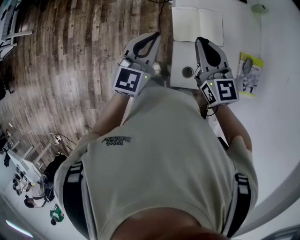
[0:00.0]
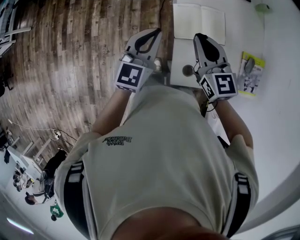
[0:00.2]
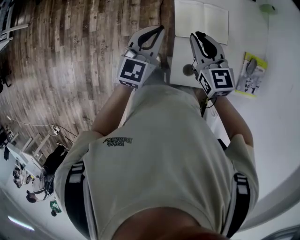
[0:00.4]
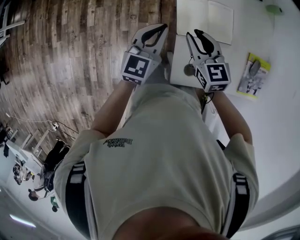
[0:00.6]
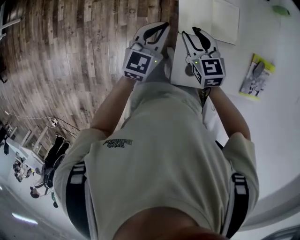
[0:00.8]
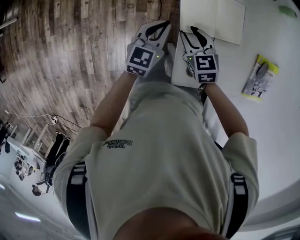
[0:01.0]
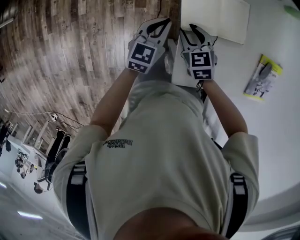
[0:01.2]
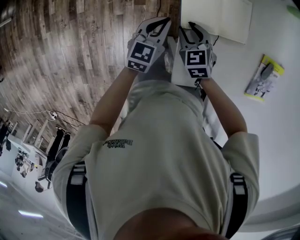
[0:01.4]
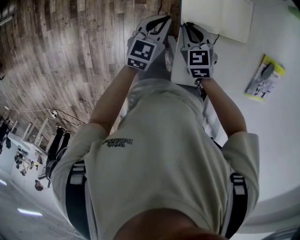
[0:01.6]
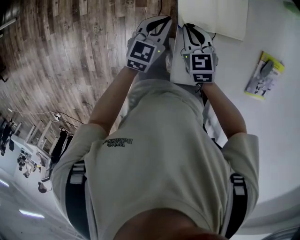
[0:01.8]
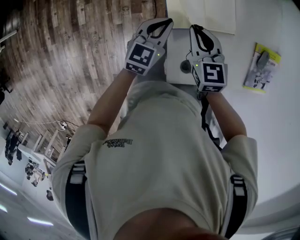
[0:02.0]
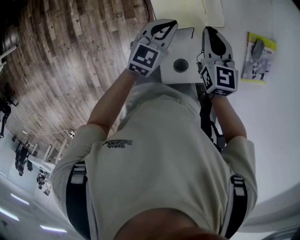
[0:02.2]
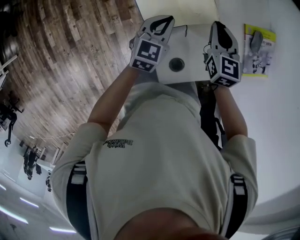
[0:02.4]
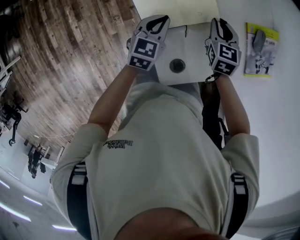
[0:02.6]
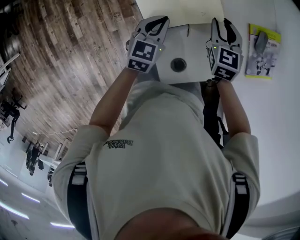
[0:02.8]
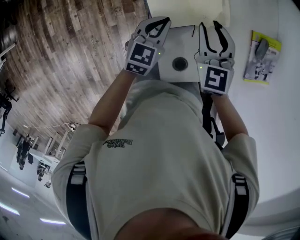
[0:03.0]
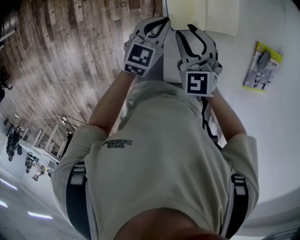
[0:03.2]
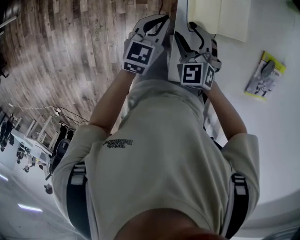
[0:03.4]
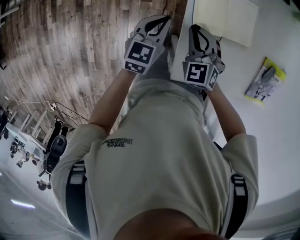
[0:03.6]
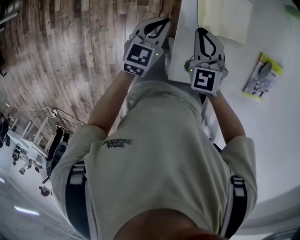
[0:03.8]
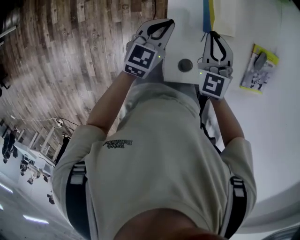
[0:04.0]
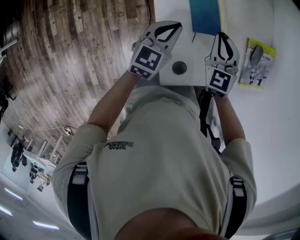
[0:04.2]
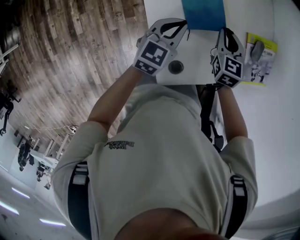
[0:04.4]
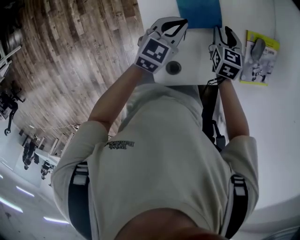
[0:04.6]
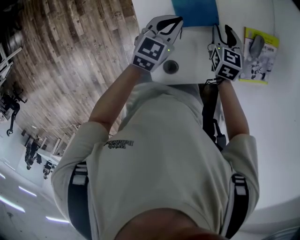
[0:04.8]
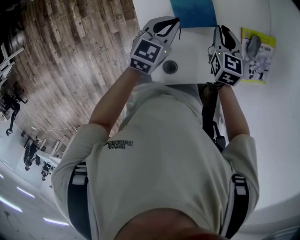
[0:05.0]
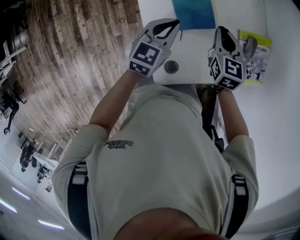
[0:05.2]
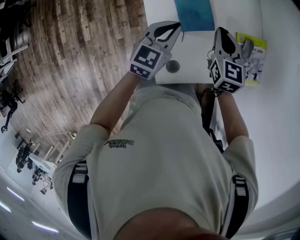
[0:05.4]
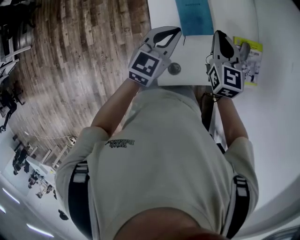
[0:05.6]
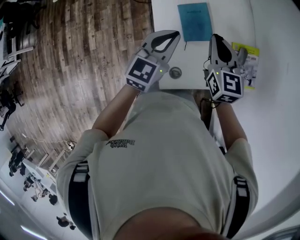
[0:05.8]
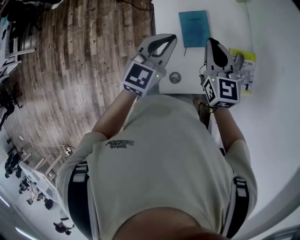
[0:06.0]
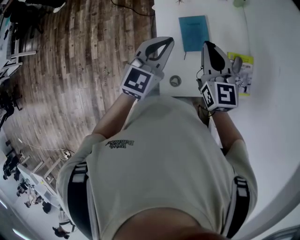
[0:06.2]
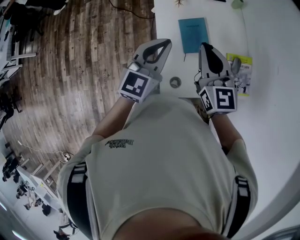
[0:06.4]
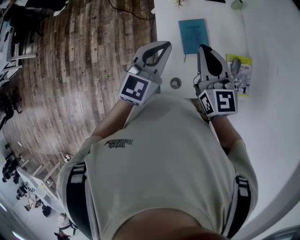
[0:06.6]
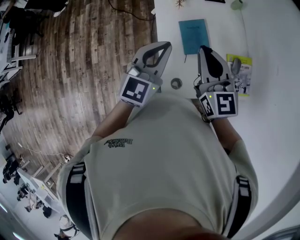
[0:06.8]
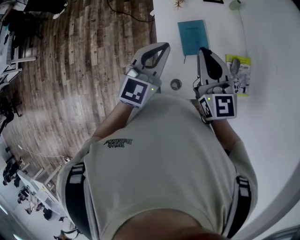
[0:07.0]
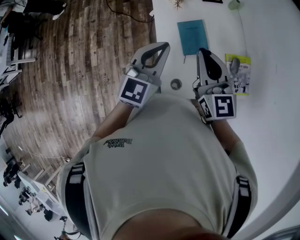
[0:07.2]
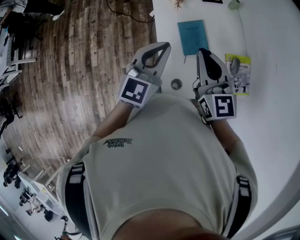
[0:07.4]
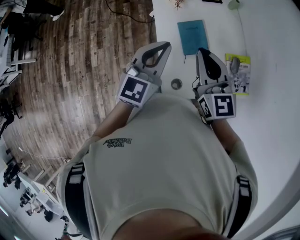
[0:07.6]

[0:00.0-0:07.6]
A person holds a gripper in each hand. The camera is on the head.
0:00.0 to 0:01.6: Both grippers travel together downward, roughly 30 cm. The left gripper changes its angle by roughly 20 degrees; the right gripper tilts its fingers some 30 degrees downward, and opens and closes again.
0:01.6 to 0:03.0: The right gripper swings up and down, approximately 15 cm each way, with 2 reversals, rotates some 30 degrees, and opens. The left gripper shifts by about 10 cm.
0:03.0 to 0:04.6: The right gripper swings up and down, about 10 cm each way, with 2 reversals, rotates approximately 30 degrees, and closes and opens again. The left gripper changes place by roughly 10 cm.
0:04.6 to 0:06.0: The grippers both shift upward by approximately 25 cm. The left gripper changes its angle by some 20 degrees. Meanwhile the right gripper changes its angle by about 30 degrees, and closes up.
0:06.0 to 0:07.6: Both grippers move upward, some 5 cm.

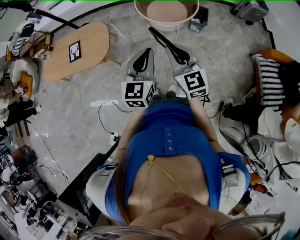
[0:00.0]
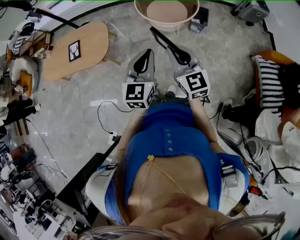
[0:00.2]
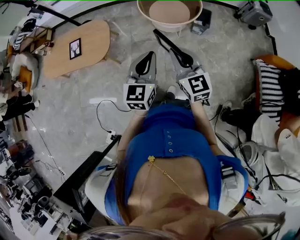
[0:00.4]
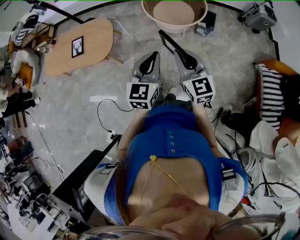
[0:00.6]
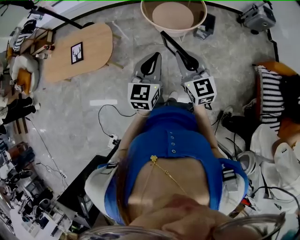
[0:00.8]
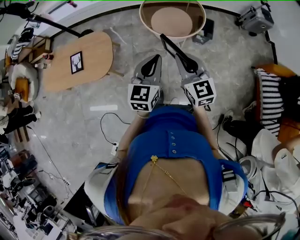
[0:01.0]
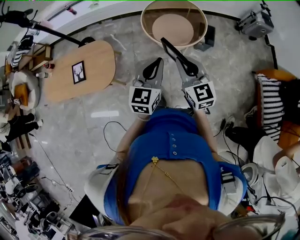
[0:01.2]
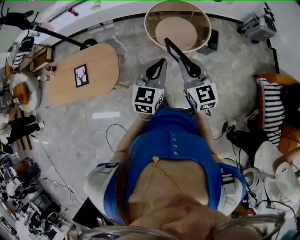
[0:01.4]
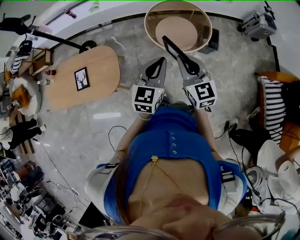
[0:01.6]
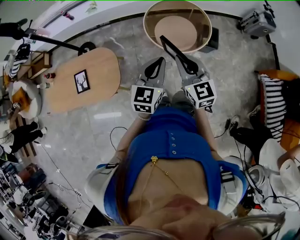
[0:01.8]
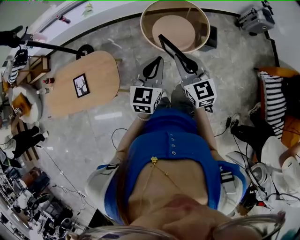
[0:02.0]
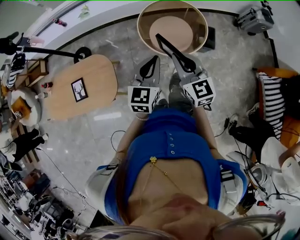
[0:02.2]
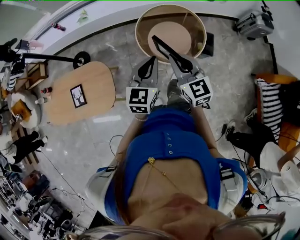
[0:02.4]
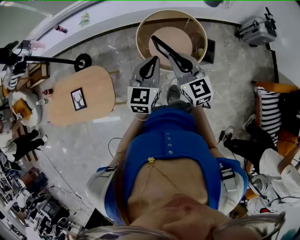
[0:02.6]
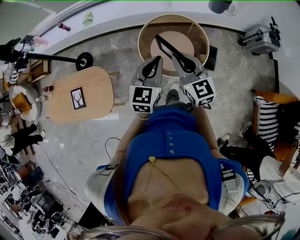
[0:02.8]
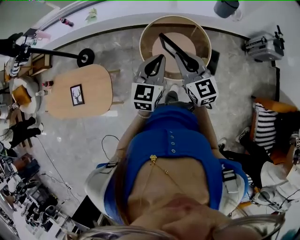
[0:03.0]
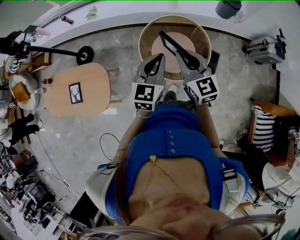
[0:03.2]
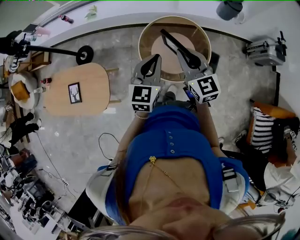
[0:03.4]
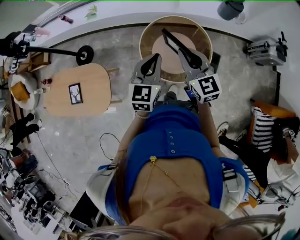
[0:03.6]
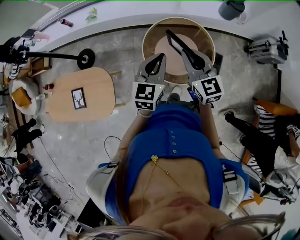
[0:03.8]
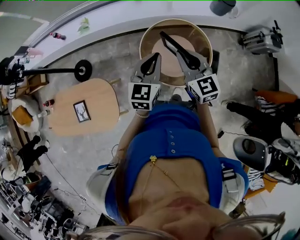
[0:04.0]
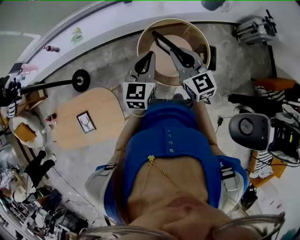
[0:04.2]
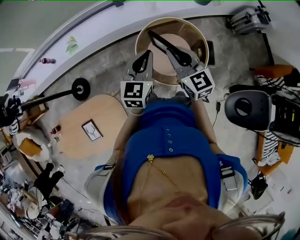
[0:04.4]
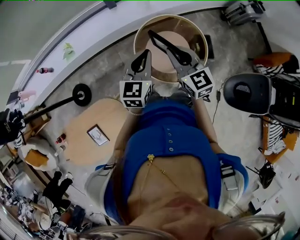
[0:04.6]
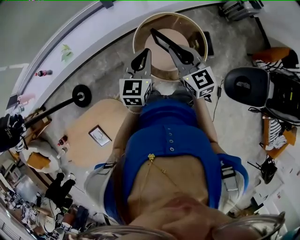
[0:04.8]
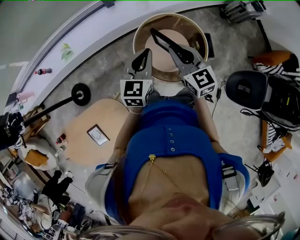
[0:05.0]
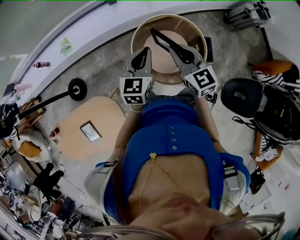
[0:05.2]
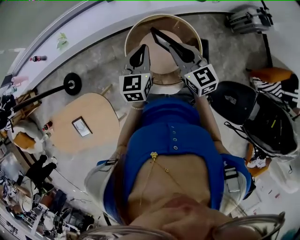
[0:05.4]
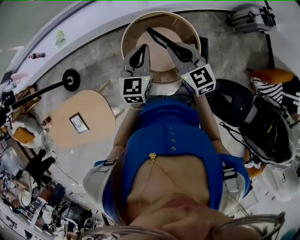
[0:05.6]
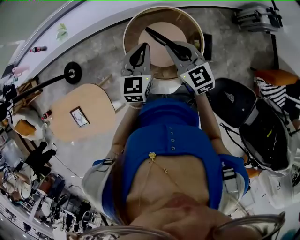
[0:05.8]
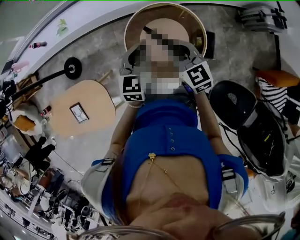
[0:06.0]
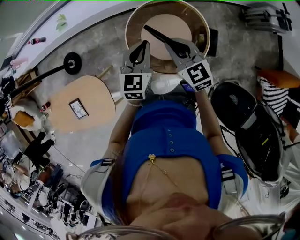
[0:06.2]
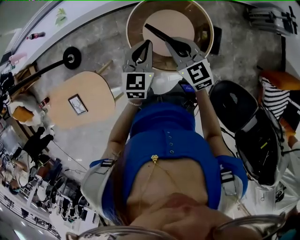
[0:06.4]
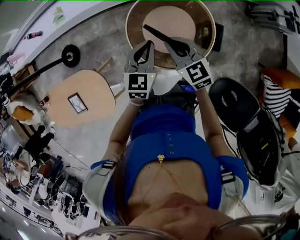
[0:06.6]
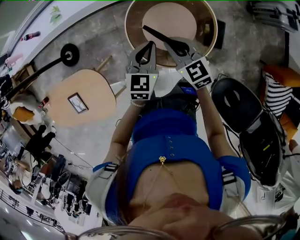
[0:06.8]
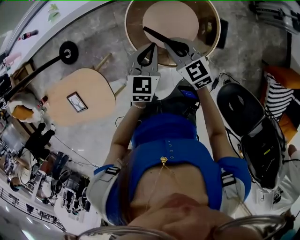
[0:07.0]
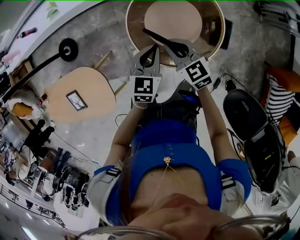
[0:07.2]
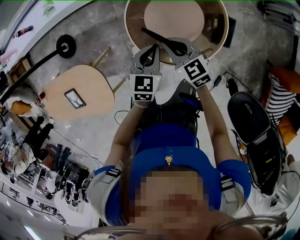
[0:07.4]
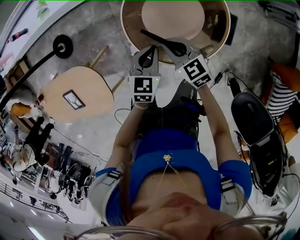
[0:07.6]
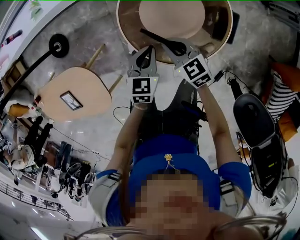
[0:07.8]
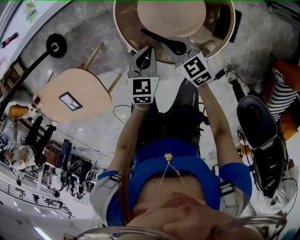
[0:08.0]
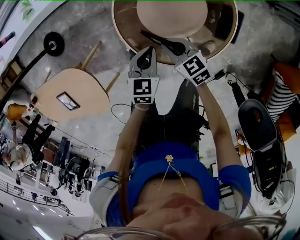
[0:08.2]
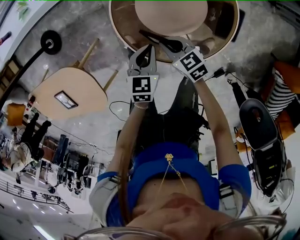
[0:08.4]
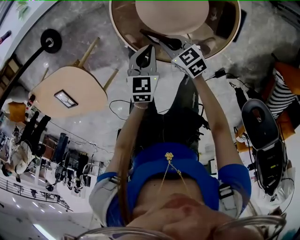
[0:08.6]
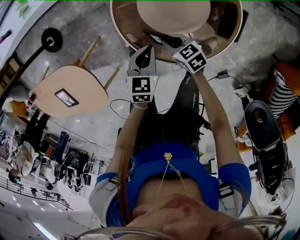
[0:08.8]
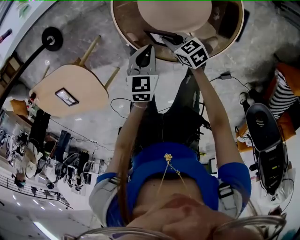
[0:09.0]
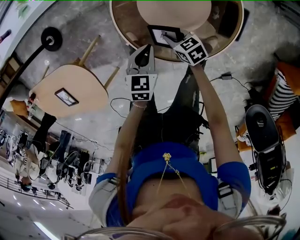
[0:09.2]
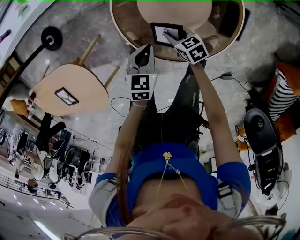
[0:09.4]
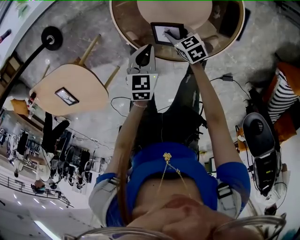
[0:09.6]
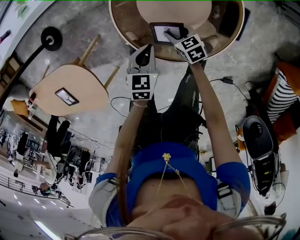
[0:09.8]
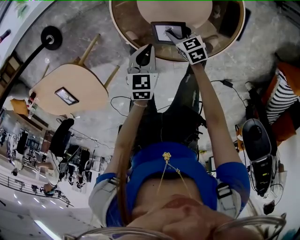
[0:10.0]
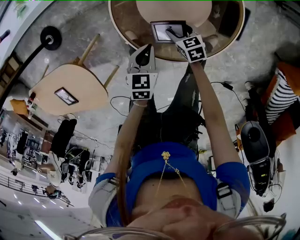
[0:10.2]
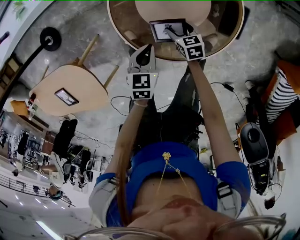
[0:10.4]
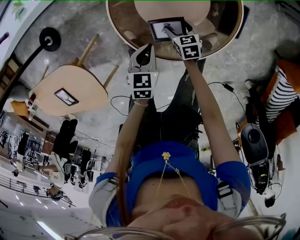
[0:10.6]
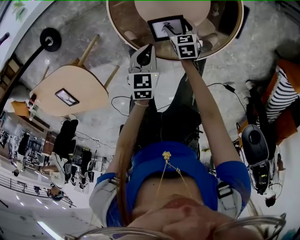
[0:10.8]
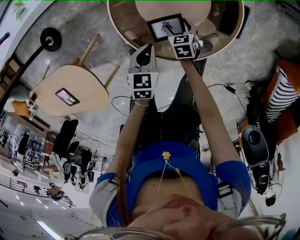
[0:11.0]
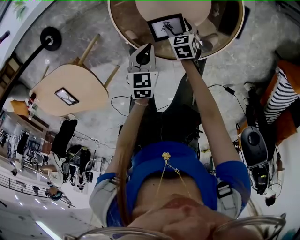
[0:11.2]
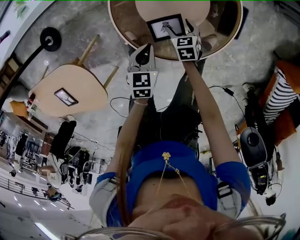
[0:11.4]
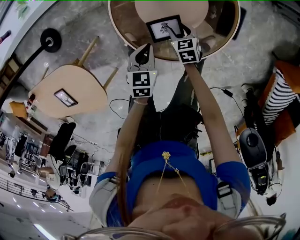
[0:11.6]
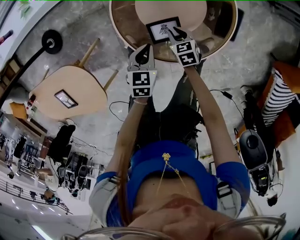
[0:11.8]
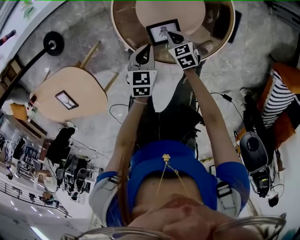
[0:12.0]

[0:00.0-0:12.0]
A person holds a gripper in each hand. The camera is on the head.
0:00.0 to 0:01.6: Both grippers travel together forward, some 25 cm.
0:01.6 to 0:03.0: The right gripper travels forward by about 25 cm. Meanwhile the left gripper moves forward and to the right, about 30 cm.
0:03.0 to 0:04.4: Both grippers move forward and to the left, about 20 cm.
0:04.4 to 0:06.0: Both grippers move to the right and downward, roughly 15 cm.
0:06.0 to 0:07.6: Both grippers move downward, some 25 cm. The right gripper rotates some 20 degrees. Meanwhile the left gripper turns by roughly 20 degrees.
0:07.6 to 0:09.0: The right gripper is displaced downward by some 20 cm, and swivels about 30 degrees; the left gripper is displaced downward by some 10 cm.
0:09.0 to 0:10.4: The right gripper goes some 10 cm to the right and downward, turns by approximately 20 degrees, and opens up.
0:10.4 to 0:12.0: The right gripper heads upward, covering about 5 cm, and closes up.

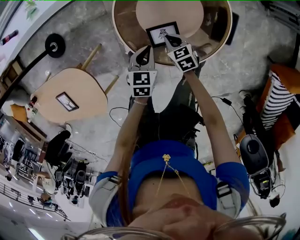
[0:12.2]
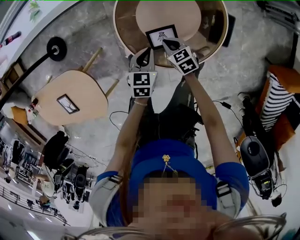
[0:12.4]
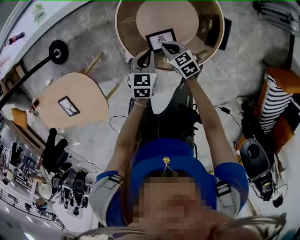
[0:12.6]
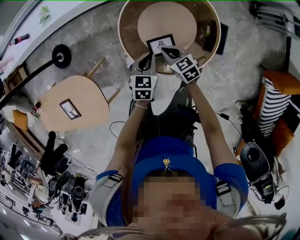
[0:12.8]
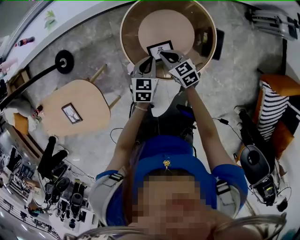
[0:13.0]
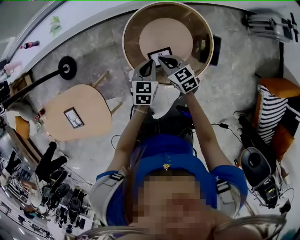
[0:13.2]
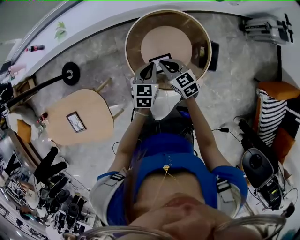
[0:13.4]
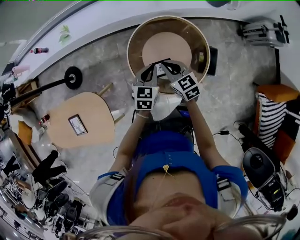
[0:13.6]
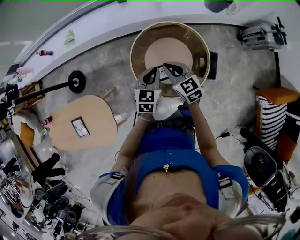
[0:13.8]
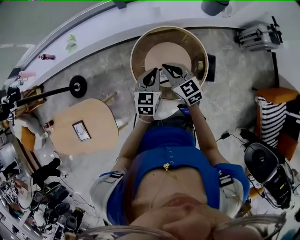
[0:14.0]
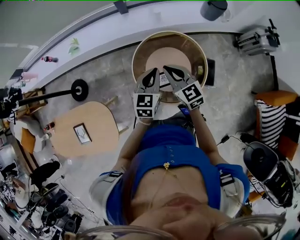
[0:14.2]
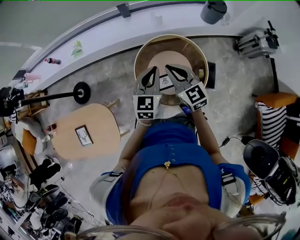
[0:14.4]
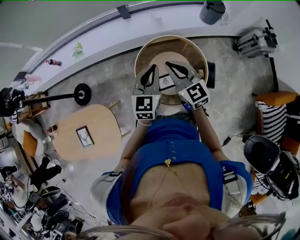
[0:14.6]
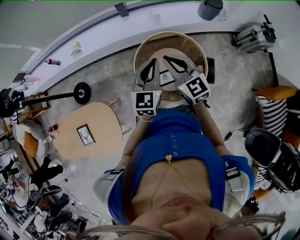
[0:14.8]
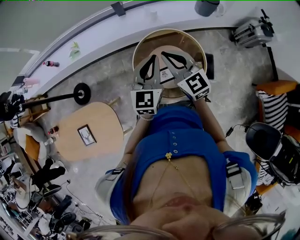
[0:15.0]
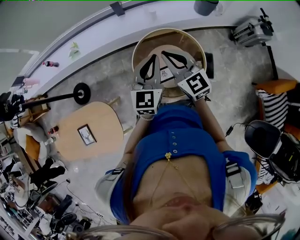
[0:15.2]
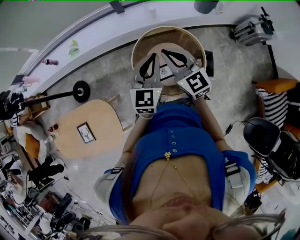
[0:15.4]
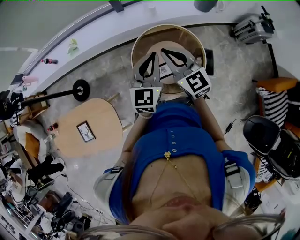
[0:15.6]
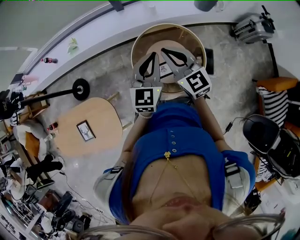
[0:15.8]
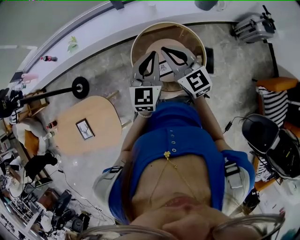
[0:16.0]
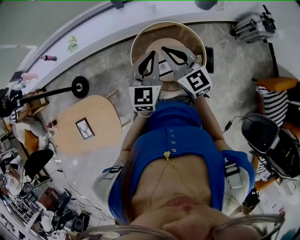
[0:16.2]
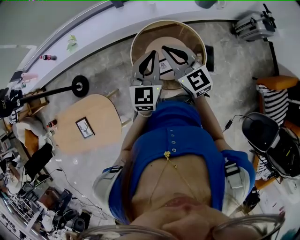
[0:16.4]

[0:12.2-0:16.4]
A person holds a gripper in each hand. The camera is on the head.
0:12.2 to 0:13.6: Both grippers move upward, approximately 25 cm. The right gripper swivels some 30 degrees.
0:13.6 to 0:15.0: The grippers both shift upward by about 25 cm. The left gripper changes its angle by roughly 30 degrees, while the right gripper swivels approximately 30 degrees.
0:15.0 to 0:16.4: The grippers stay close to where they were, moving slightly.
